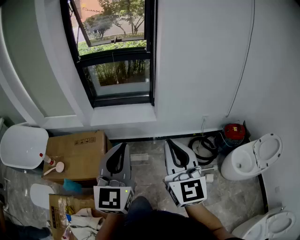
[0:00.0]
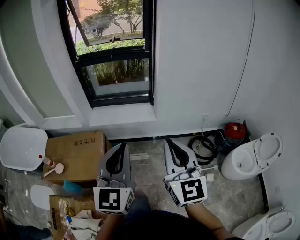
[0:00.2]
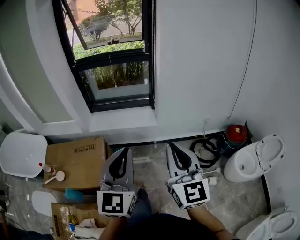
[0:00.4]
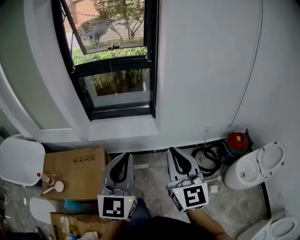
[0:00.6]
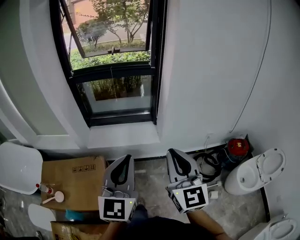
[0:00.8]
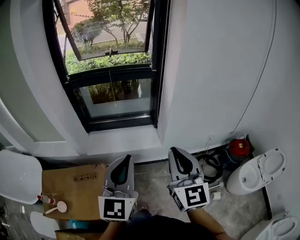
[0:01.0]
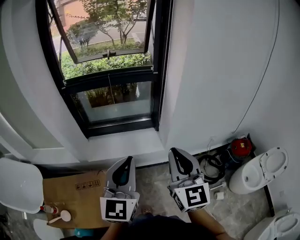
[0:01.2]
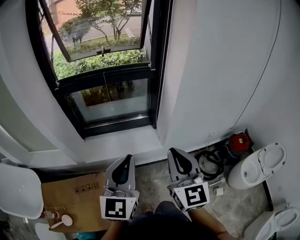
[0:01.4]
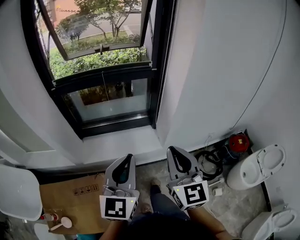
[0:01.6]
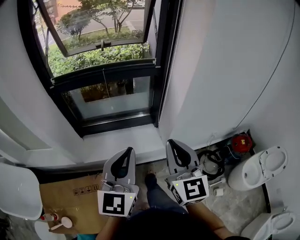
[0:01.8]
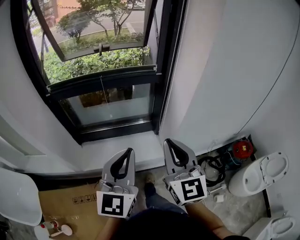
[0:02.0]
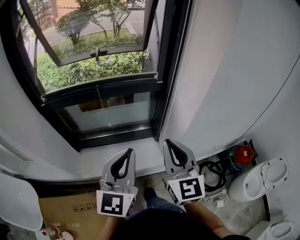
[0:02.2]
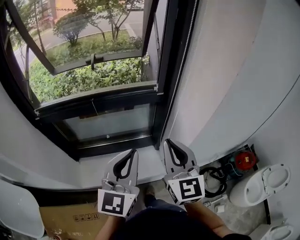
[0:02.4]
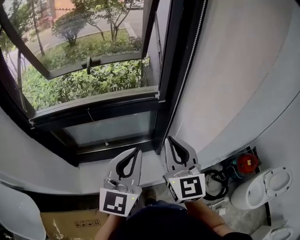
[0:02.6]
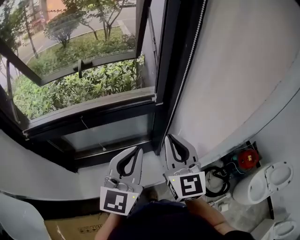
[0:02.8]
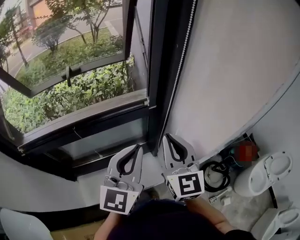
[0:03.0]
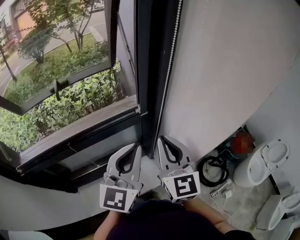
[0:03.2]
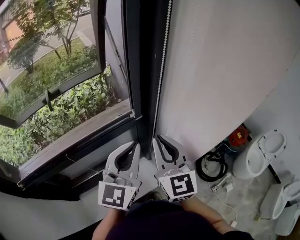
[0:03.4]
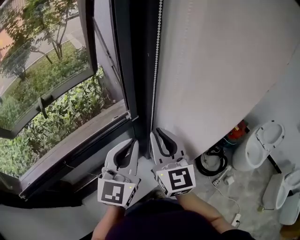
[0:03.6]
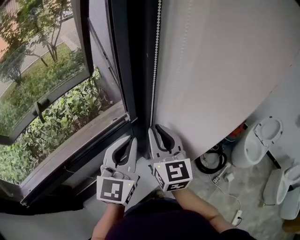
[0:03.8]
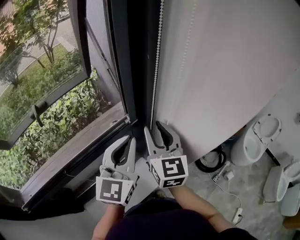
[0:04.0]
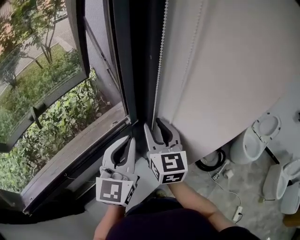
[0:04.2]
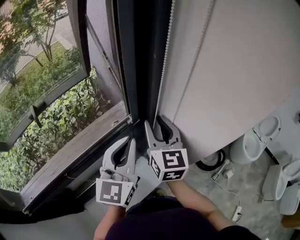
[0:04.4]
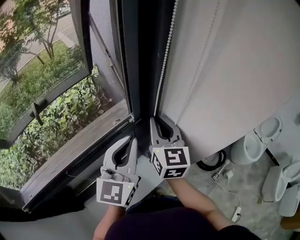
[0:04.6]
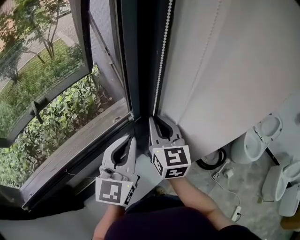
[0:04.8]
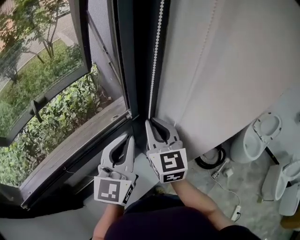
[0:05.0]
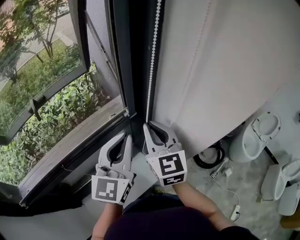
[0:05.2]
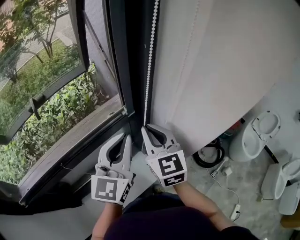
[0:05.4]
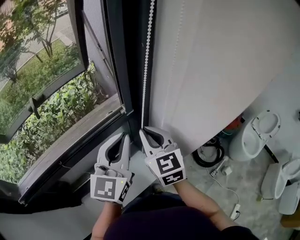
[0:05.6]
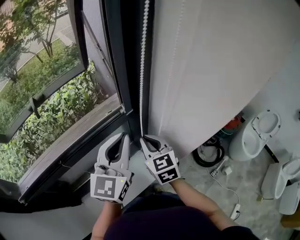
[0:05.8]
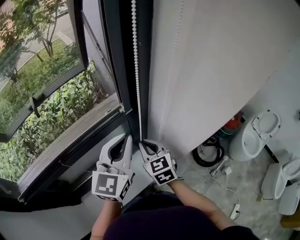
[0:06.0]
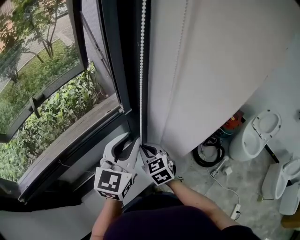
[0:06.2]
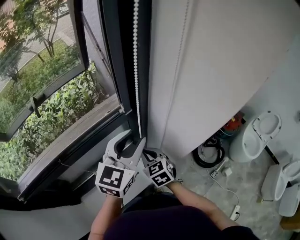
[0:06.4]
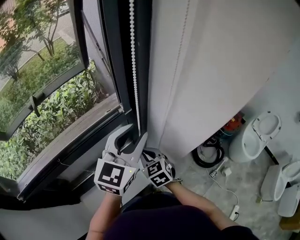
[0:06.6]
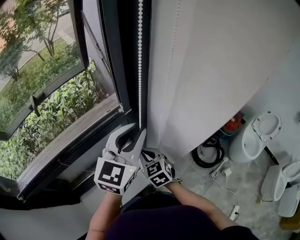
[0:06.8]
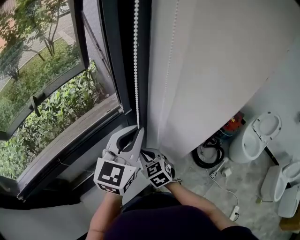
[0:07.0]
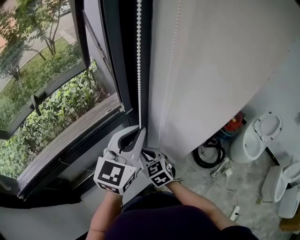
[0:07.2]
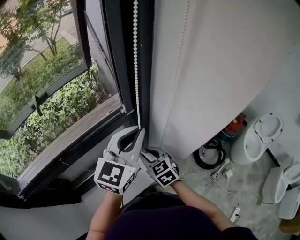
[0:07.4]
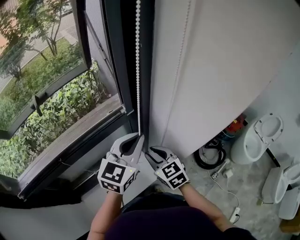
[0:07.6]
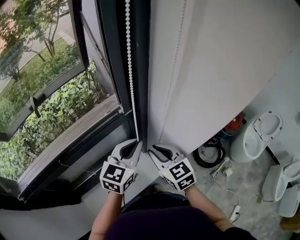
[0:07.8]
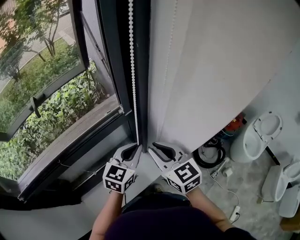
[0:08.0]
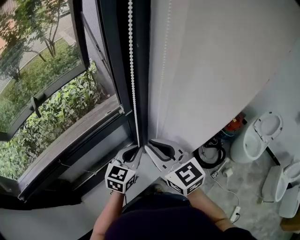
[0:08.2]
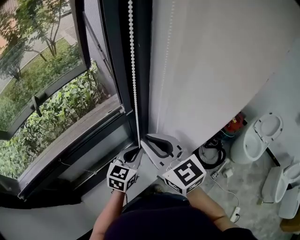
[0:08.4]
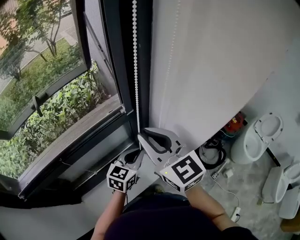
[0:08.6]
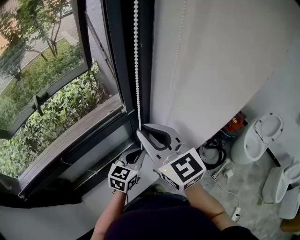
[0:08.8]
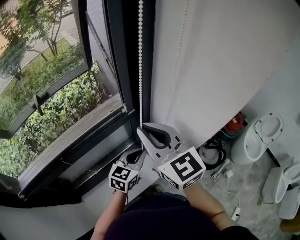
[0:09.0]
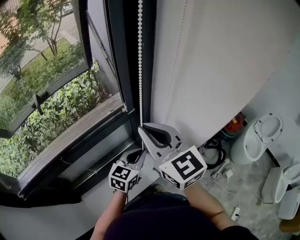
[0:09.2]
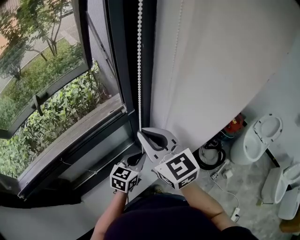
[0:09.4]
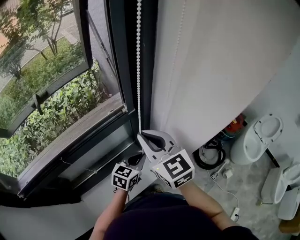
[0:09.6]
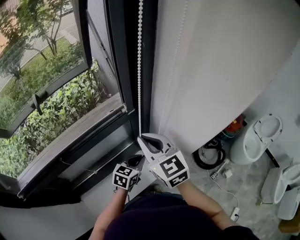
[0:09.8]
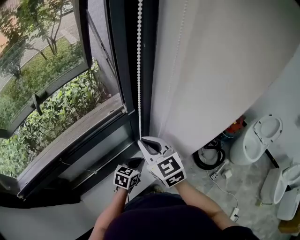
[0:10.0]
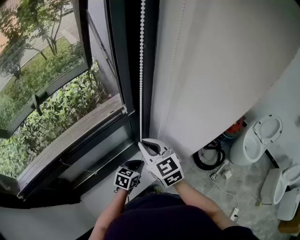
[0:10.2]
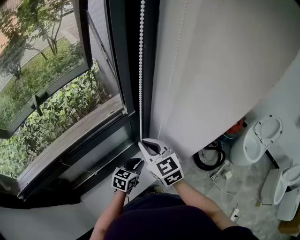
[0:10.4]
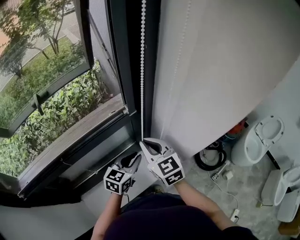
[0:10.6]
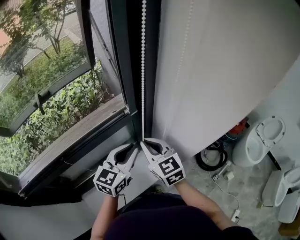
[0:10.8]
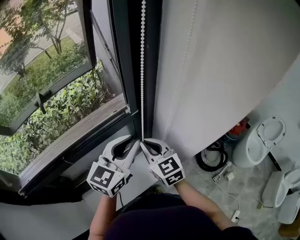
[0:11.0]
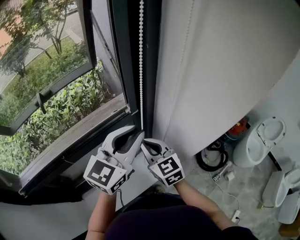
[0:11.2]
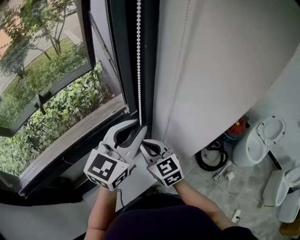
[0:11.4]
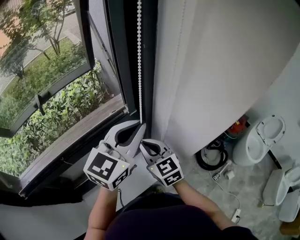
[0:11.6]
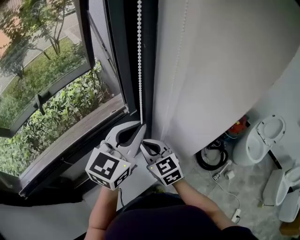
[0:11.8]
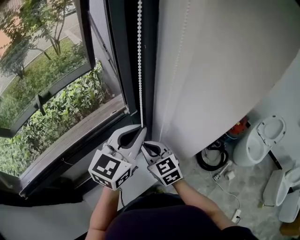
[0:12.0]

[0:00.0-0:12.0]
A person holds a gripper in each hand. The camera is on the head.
0:00.0 to 0:01.6: The two grippers go approximately 35 cm forward.
0:01.6 to 0:03.0: Both grippers travel together forward, about 40 cm.
0:03.0 to 0:04.4: The grippers both shift forward by about 10 cm. The right gripper turns by approximately 20 degrees, and opens.
0:04.4 to 0:06.0: The right gripper travels downward and backward by some 15 cm, rotates approximately 30 degrees, and closes.
0:06.0 to 0:07.6: The left gripper ends up about 5 cm from where it was, and opens and closes again.
0:07.6 to 0:09.0: The right gripper heads upward, covering roughly 20 cm, and turns by some 30 degrees. Meanwhile the left gripper moves downward, approximately 15 cm.
0:09.0 to 0:10.4: Both grippers move downward, about 15 cm.
0:10.4 to 0:12.0: The left gripper moves upward, roughly 30 cm, and swivels some 30 degrees.

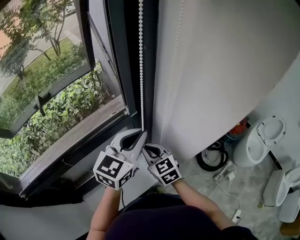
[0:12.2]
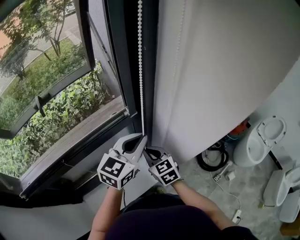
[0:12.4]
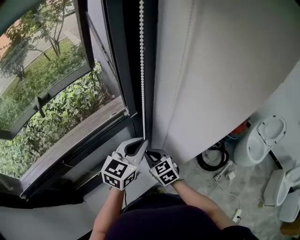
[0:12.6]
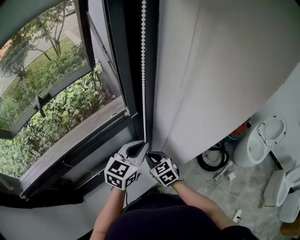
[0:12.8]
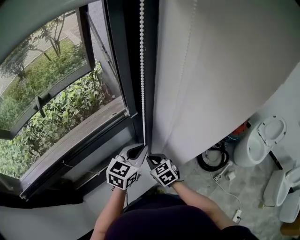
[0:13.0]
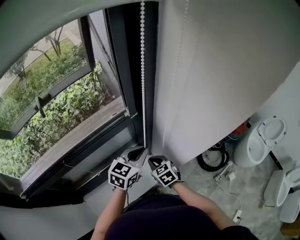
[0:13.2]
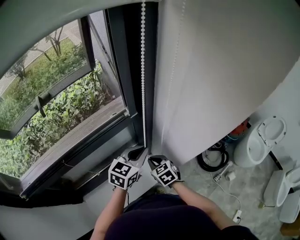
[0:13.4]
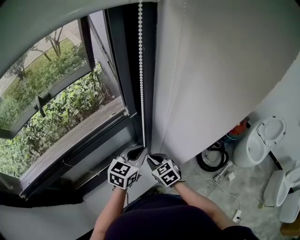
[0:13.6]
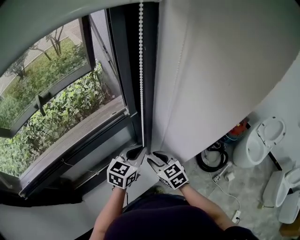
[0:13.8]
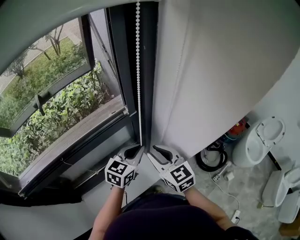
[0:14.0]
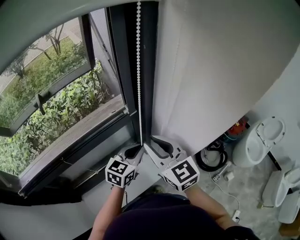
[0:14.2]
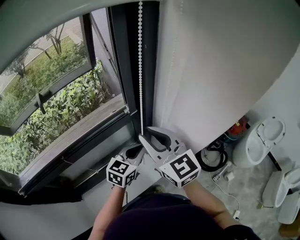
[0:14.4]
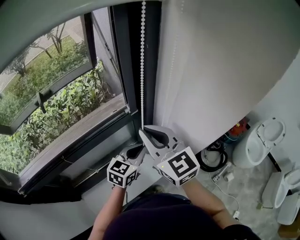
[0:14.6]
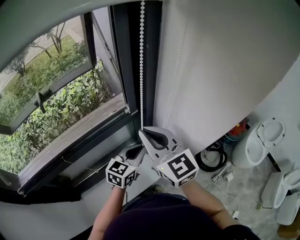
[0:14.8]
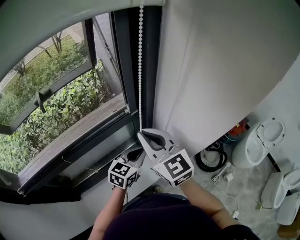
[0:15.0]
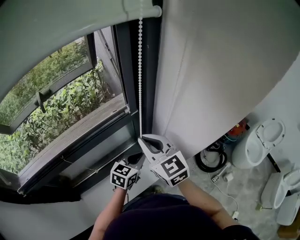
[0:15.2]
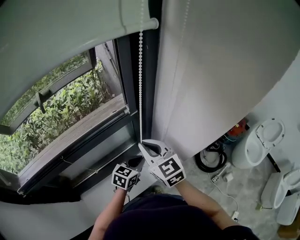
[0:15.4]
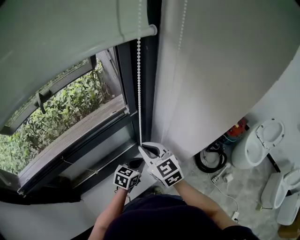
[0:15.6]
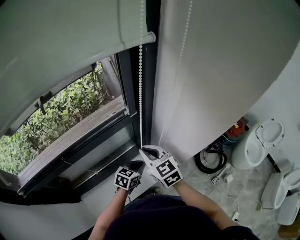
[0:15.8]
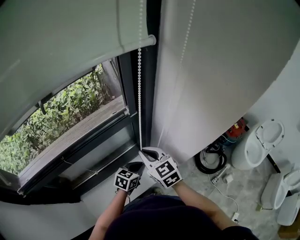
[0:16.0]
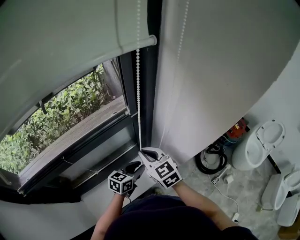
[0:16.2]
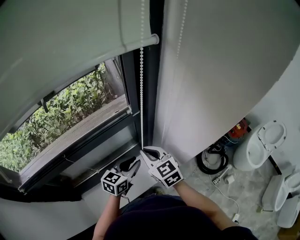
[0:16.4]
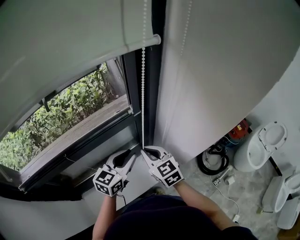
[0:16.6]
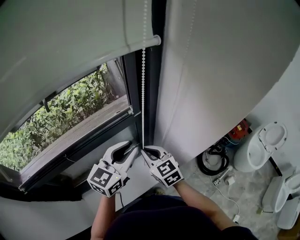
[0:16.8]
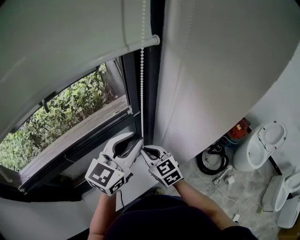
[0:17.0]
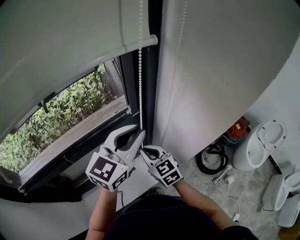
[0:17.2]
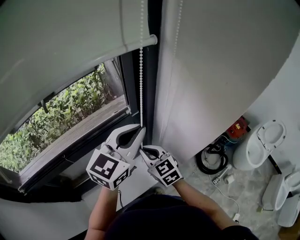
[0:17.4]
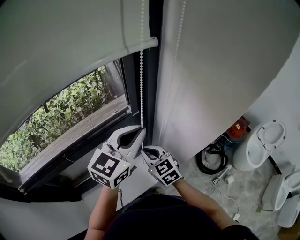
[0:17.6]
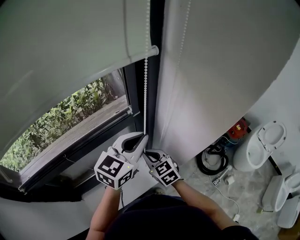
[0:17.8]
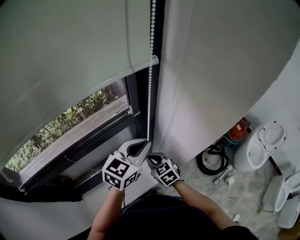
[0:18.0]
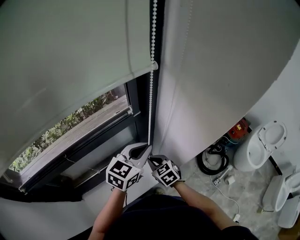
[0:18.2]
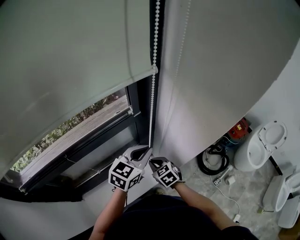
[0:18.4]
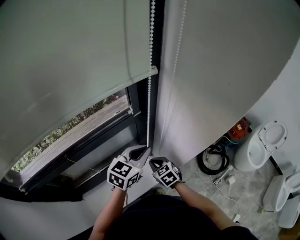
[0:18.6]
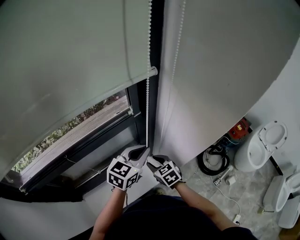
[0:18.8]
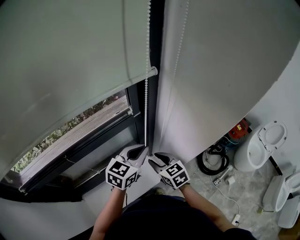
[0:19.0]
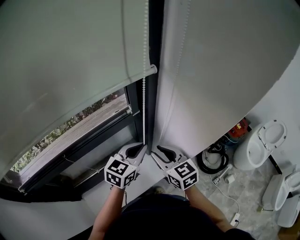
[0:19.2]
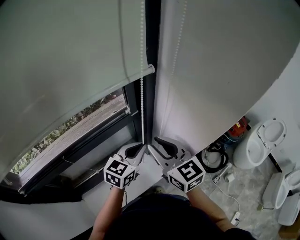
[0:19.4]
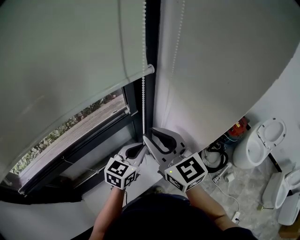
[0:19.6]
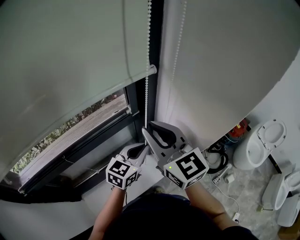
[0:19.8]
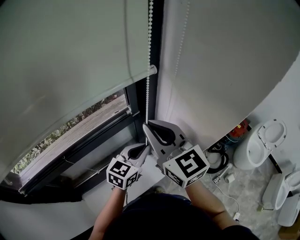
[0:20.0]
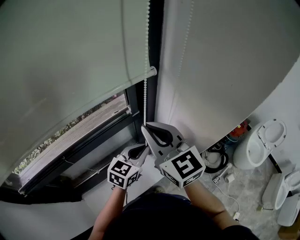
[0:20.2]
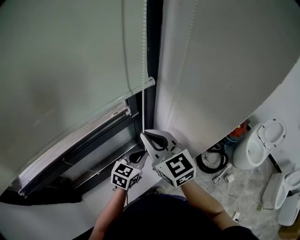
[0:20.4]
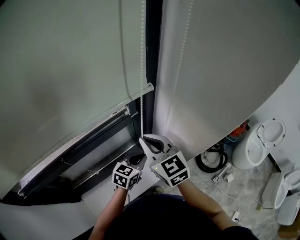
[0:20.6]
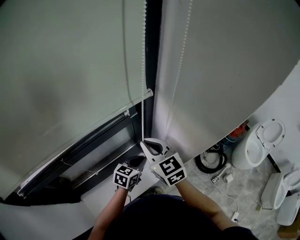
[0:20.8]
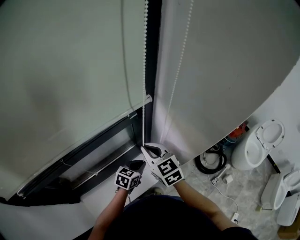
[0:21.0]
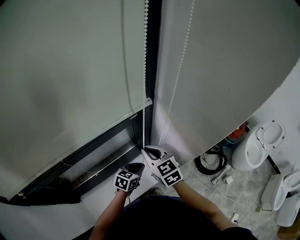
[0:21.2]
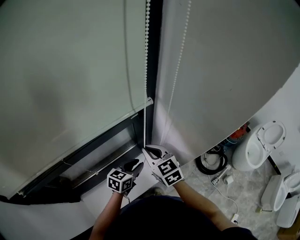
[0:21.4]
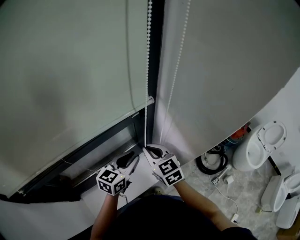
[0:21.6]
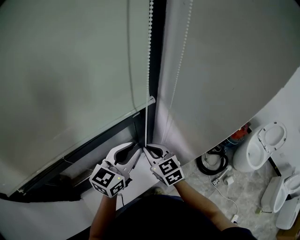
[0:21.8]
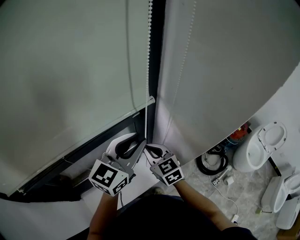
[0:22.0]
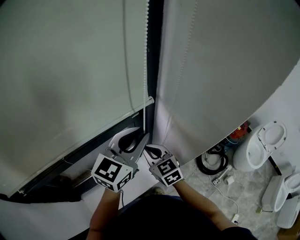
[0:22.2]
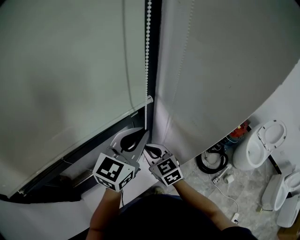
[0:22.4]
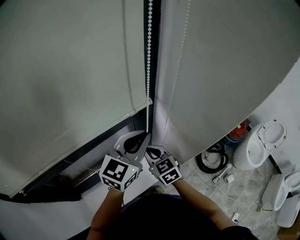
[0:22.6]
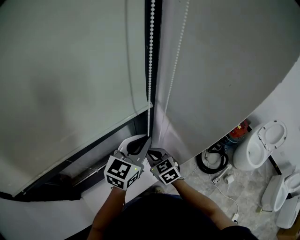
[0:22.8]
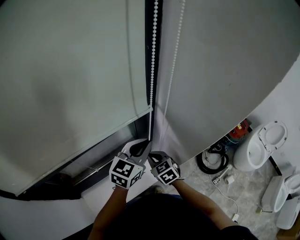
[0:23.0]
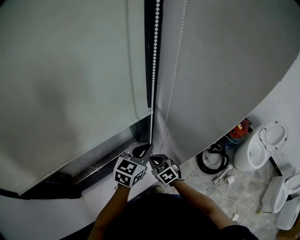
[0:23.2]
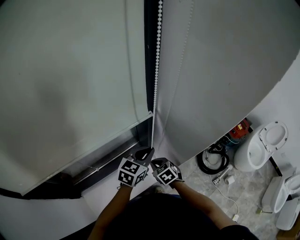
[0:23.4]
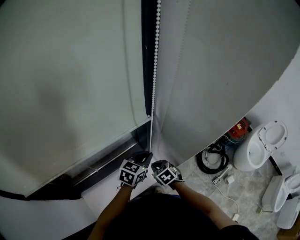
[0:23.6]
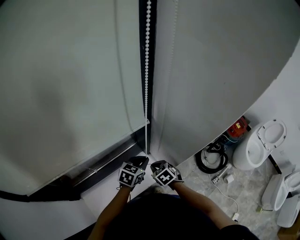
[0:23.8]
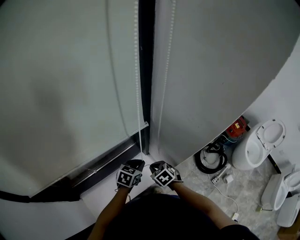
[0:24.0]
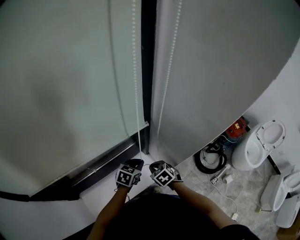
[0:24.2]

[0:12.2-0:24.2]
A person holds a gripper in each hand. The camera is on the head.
0:12.2 to 0:13.8: The left gripper moves downward, some 15 cm. Meanwhile the right gripper shifts some 5 cm downward, and opens.
0:13.8 to 0:15.2: The right gripper shifts about 15 cm upward, turns by roughly 20 degrees, and closes up. Meanwhile the left gripper goes about 5 cm downward.
0:15.2 to 0:16.6: The right gripper shifts some 10 cm downward; the left gripper moves upward and to the left, about 10 cm, and opens its fingers.
0:16.6 to 0:18.2: The left gripper shifts about 10 cm to the right, reaches some 15 cm upward, then returns, and closes up. Meanwhile the right gripper shifts some 10 cm downward.
0:18.2 to 0:19.8: The right gripper moves upward, roughly 30 cm, and tips its fingers upward by about 40 degrees.
0:19.8 to 0:21.2: Both grippers travel together downward, about 20 cm. The left gripper turns by some 20 degrees; the right gripper rotates roughly 20 degrees.
0:21.2 to 0:22.6: The left gripper is displaced upward by roughly 30 cm, and changes its angle by approximately 40 degrees.
0:22.6 to 0:24.2: The left gripper heads downward, covering roughly 30 cm, and tilts its fingers about 40 degrees downward, while the right gripper travels downward by about 15 cm, and turns by approximately 30 degrees.
